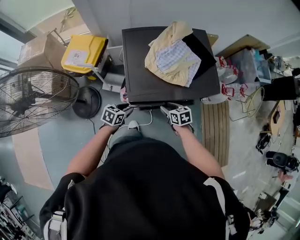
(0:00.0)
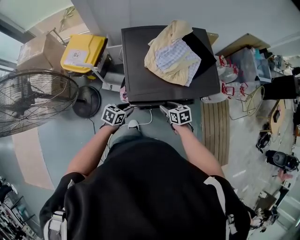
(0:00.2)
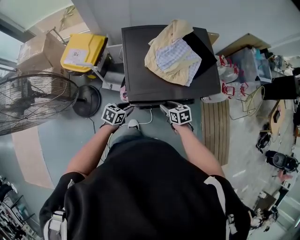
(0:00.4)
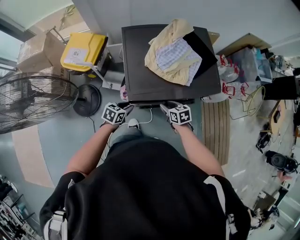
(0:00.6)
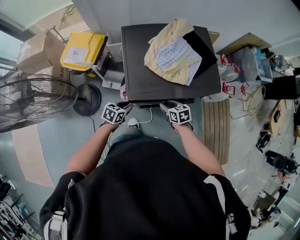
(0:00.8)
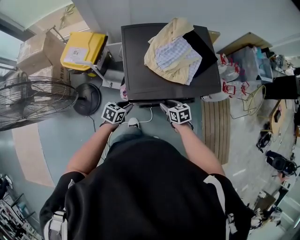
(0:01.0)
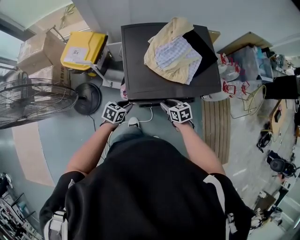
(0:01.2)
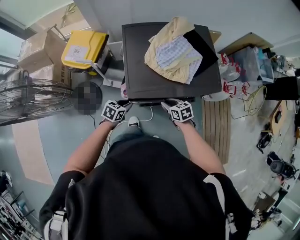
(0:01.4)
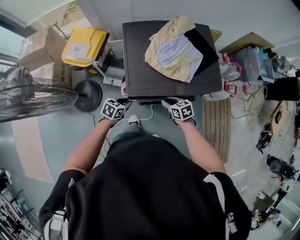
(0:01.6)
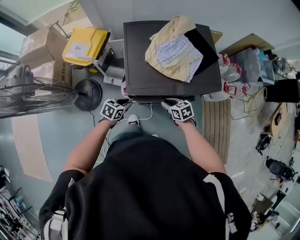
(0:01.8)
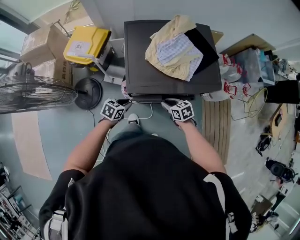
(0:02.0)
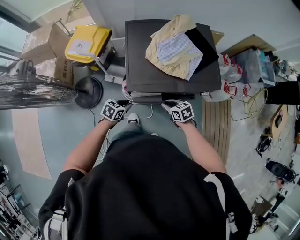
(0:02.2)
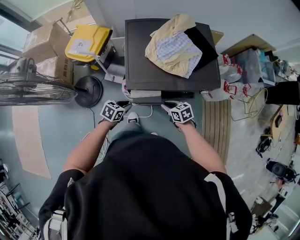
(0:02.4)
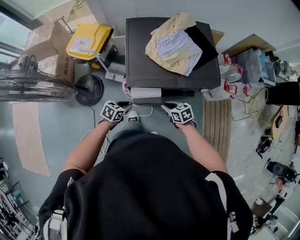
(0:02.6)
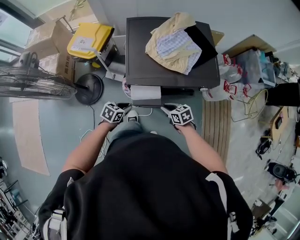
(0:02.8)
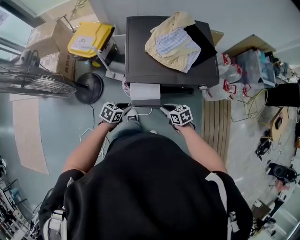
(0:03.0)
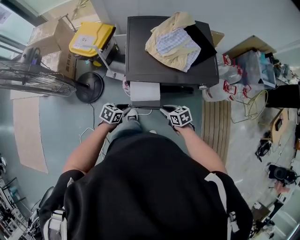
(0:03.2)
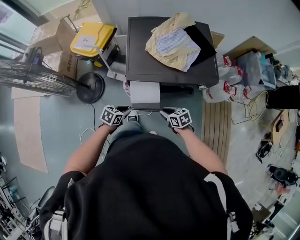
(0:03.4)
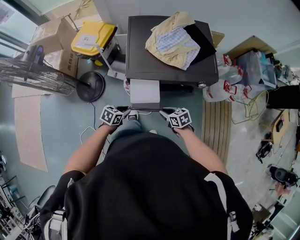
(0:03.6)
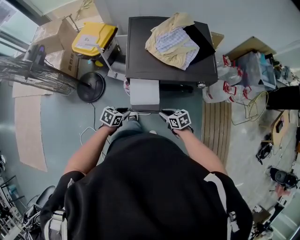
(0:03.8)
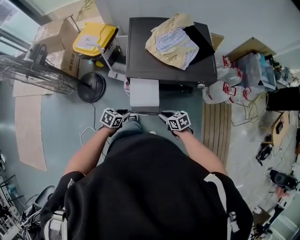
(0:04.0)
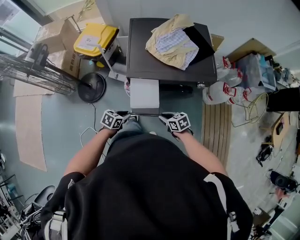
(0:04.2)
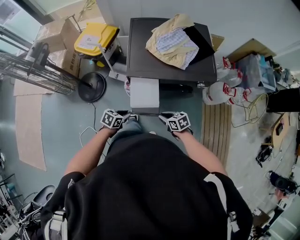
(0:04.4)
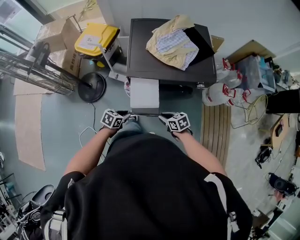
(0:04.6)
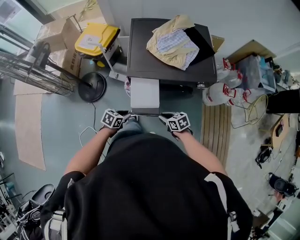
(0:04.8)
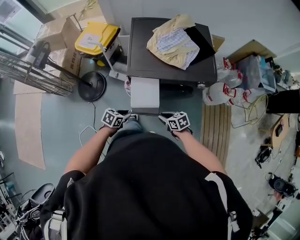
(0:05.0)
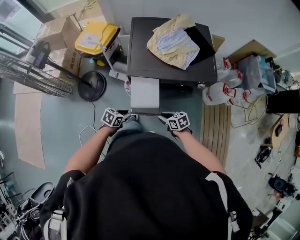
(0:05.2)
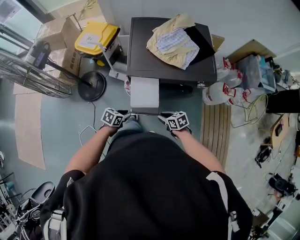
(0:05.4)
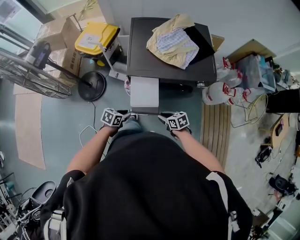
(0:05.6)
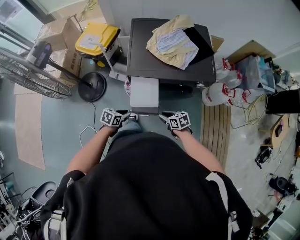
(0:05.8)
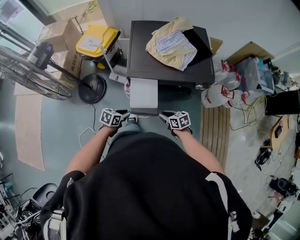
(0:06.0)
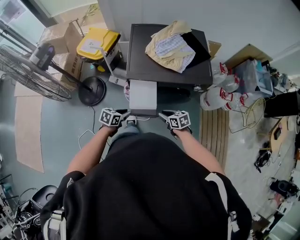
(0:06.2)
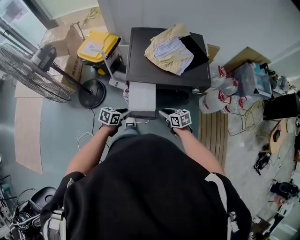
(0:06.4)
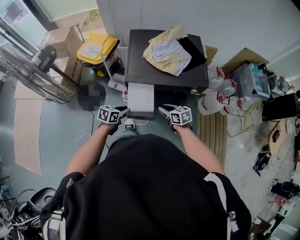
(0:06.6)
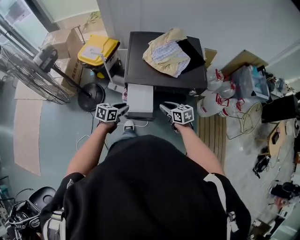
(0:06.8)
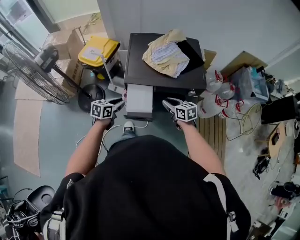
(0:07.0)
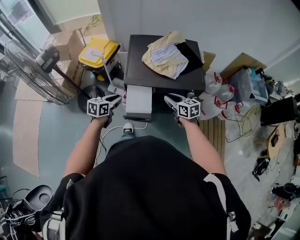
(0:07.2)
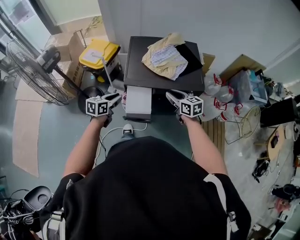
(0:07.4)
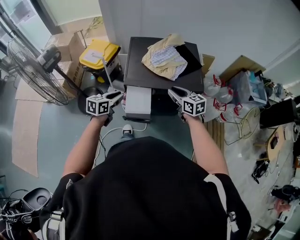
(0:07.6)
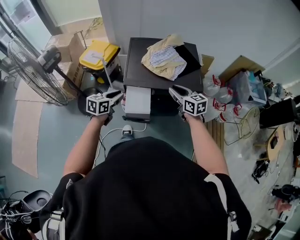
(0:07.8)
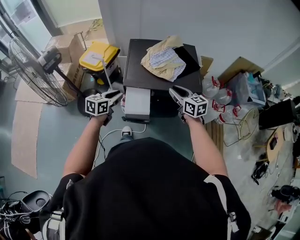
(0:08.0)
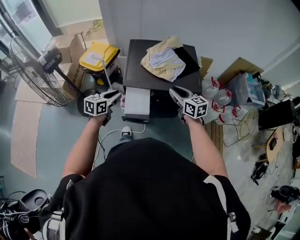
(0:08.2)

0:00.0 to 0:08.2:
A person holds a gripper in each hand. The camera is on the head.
0:00.0 to 0:01.6: The grippers stay close to where they were, moving slightly.
0:01.6 to 0:03.2: The left gripper moves about 10 cm, while the right gripper shifts by about 10 cm.
0:03.2 to 0:05.0: The left gripper moves some 10 cm. Meanwhile the right gripper ends up some 10 cm from where it was.
0:05.0 to 0:06.6: The grippers both shift upward by roughly 10 cm.
0:06.6 to 0:08.2: The two grippers go approximately 20 cm upward. The left gripper swivels about 20 degrees; the right gripper changes its angle by about 20 degrees.

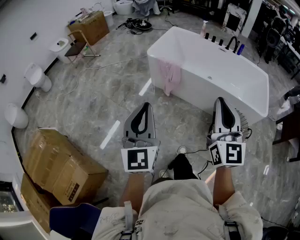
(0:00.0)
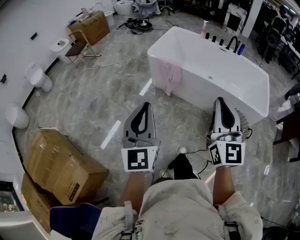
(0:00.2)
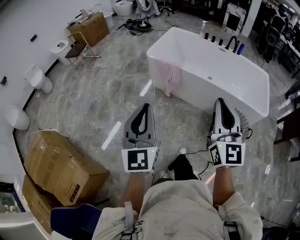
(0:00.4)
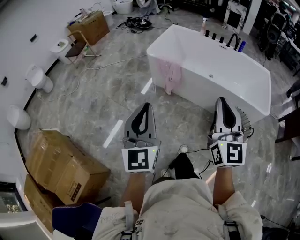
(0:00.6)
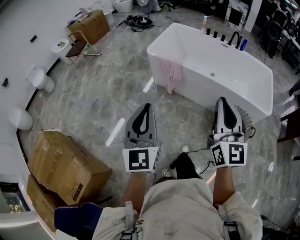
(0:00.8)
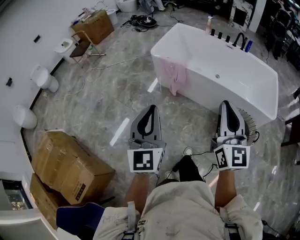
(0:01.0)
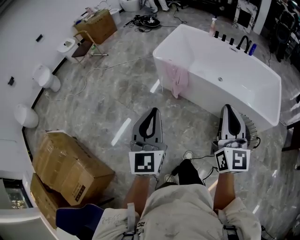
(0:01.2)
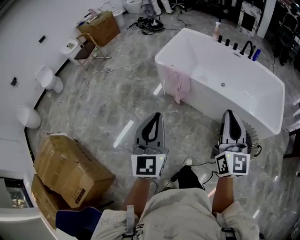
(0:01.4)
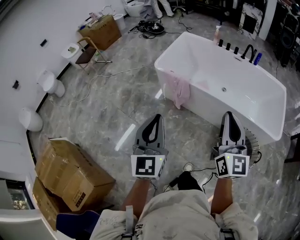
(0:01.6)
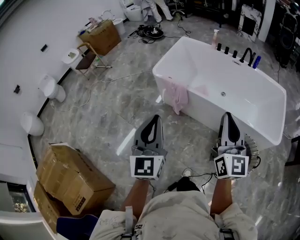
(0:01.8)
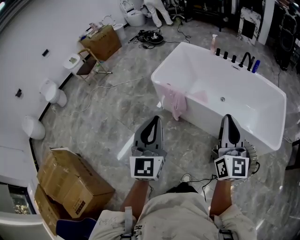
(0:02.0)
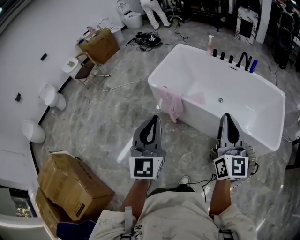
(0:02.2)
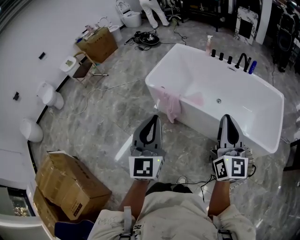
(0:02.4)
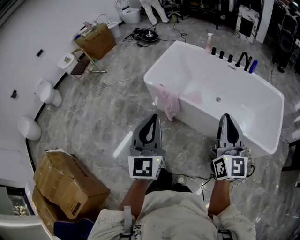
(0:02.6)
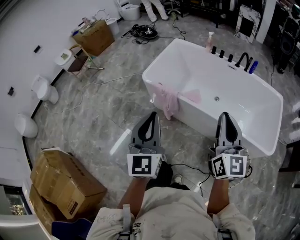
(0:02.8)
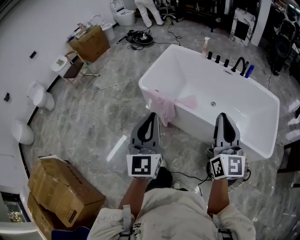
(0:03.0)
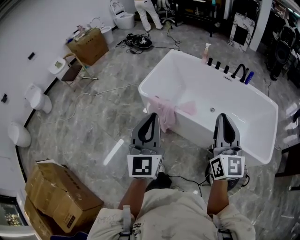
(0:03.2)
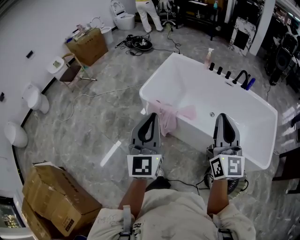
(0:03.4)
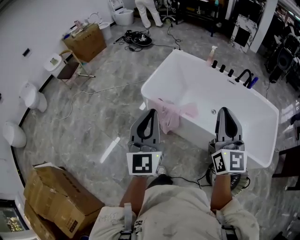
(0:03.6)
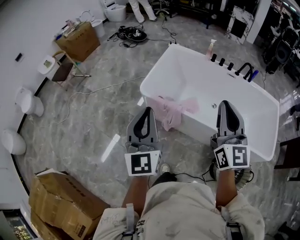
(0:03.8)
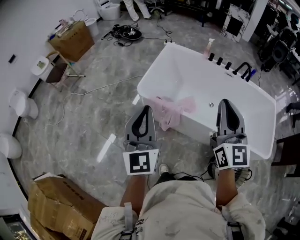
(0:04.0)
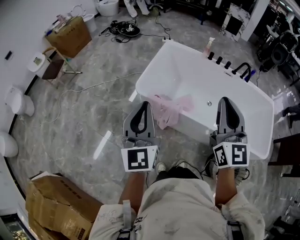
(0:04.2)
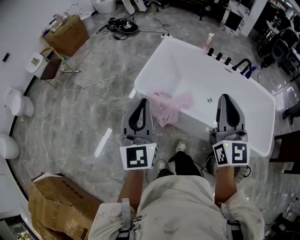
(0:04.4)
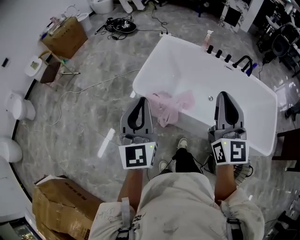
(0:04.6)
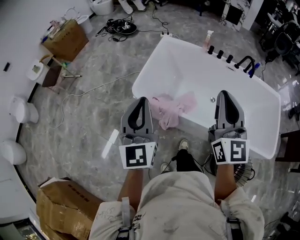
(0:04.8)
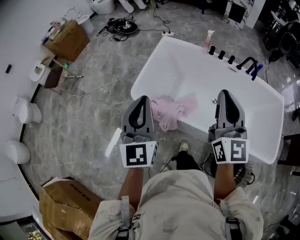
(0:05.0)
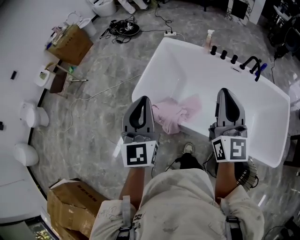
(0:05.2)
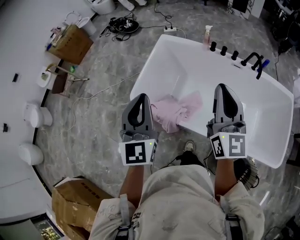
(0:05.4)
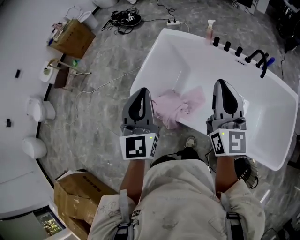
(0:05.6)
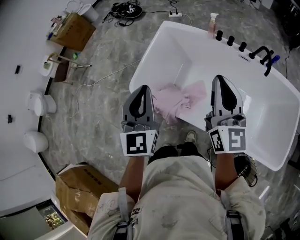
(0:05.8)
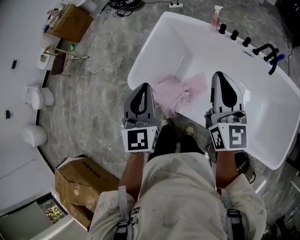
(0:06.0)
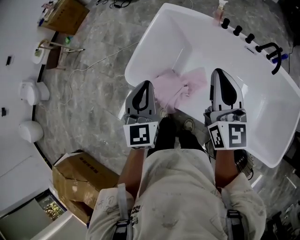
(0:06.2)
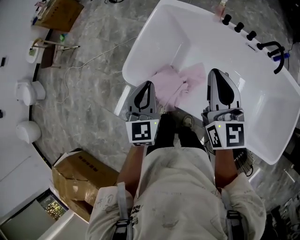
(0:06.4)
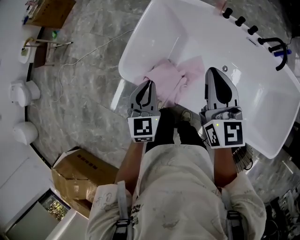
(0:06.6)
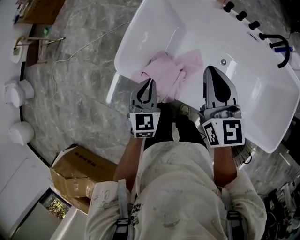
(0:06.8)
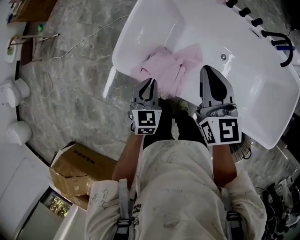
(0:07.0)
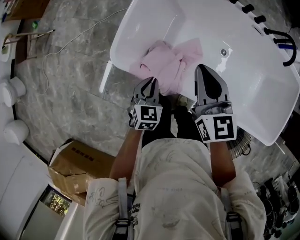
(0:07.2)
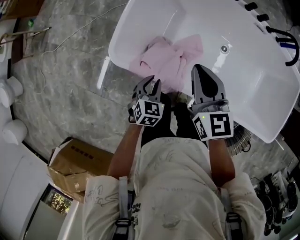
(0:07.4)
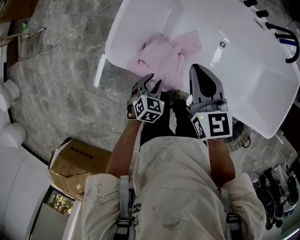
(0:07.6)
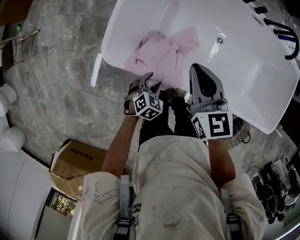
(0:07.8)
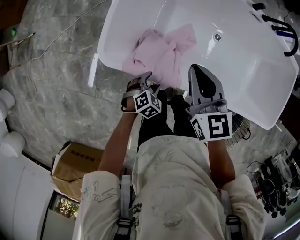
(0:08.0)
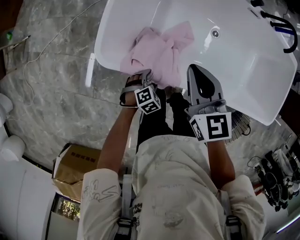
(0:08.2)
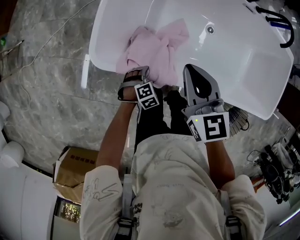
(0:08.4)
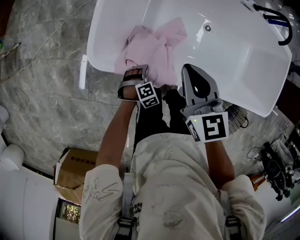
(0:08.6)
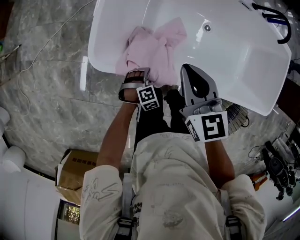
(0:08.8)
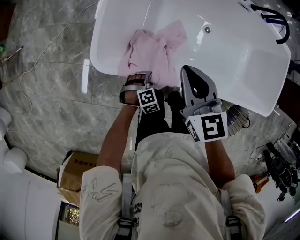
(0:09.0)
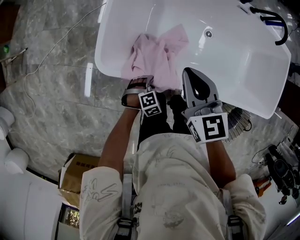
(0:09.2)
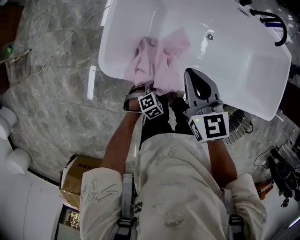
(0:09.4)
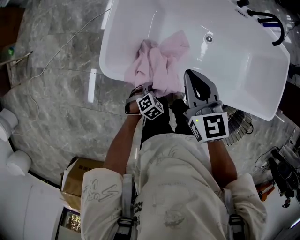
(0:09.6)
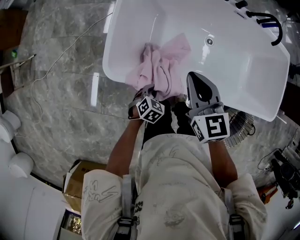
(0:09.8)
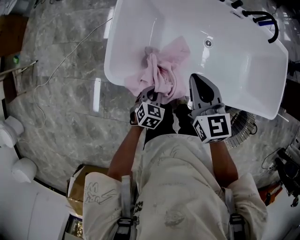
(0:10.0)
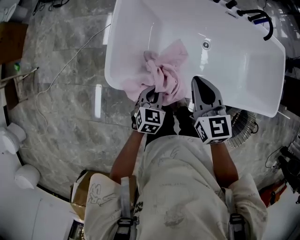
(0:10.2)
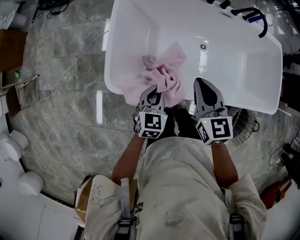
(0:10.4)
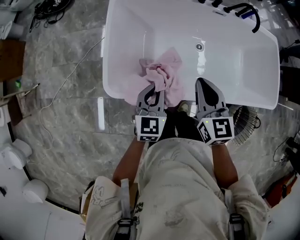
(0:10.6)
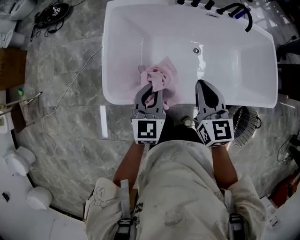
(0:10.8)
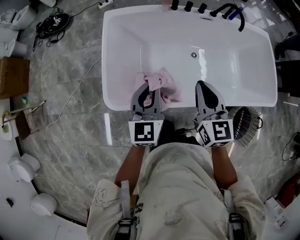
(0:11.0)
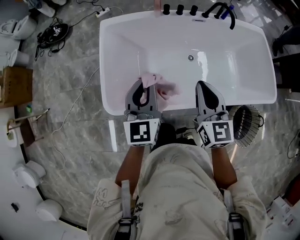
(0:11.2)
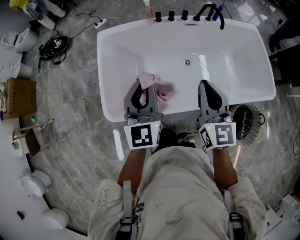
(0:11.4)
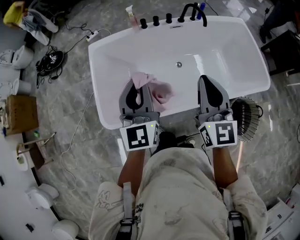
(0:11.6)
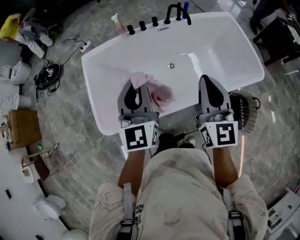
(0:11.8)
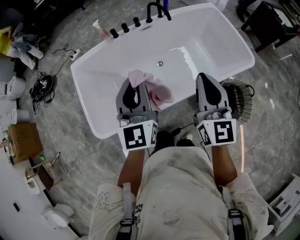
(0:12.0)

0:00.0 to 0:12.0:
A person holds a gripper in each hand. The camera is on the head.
0:00.0 to 0:01.6: Both grippers travel together forward and to the right, approximately 20 cm.
0:01.6 to 0:03.0: Both grippers travel together forward and to the right, about 20 cm.
0:03.0 to 0:04.4: The grippers both shift forward and to the left by roughly 25 cm.
0:04.4 to 0:06.0: The grippers both shift forward and to the right by approximately 35 cm.
0:06.0 to 0:07.6: The left gripper travels downward by approximately 40 cm, angles its fingers downward, by about 50 degrees, and opens up. Meanwhile the right gripper shifts about 30 cm downward and to the left, and turns by approximately 30 degrees.
0:07.6 to 0:09.0: The left gripper heads downward, covering approximately 10 cm, and twists some 40 degrees clockwise, seen from behind.
0:09.0 to 0:10.4: The right gripper travels upward and to the right by some 10 cm, while the left gripper is displaced upward by approximately 25 cm, angles its fingers upward, by some 40 degrees, and closes.
0:10.4 to 0:12.0: The left gripper is displaced upward and to the right by about 40 cm, and angles its fingers upward, by roughly 40 degrees; the right gripper goes some 35 cm to the right and upward, and turns by about 40 degrees.

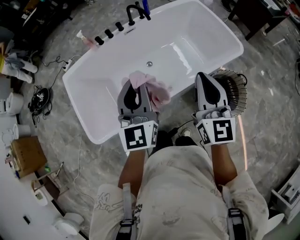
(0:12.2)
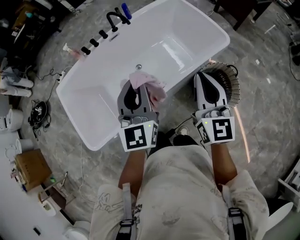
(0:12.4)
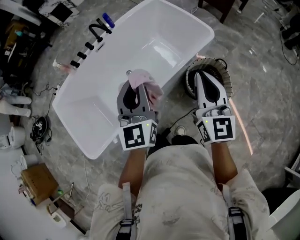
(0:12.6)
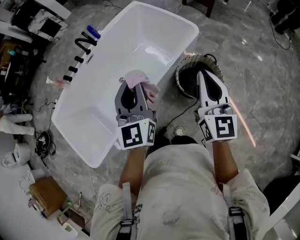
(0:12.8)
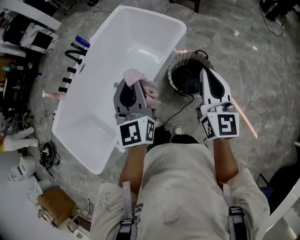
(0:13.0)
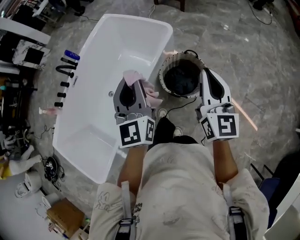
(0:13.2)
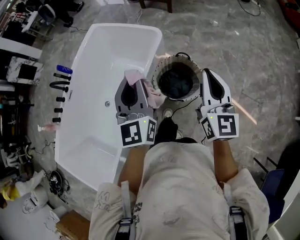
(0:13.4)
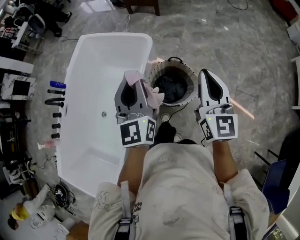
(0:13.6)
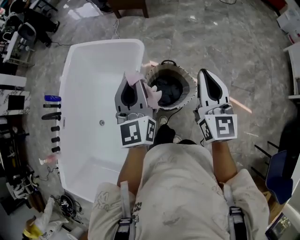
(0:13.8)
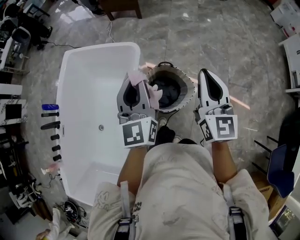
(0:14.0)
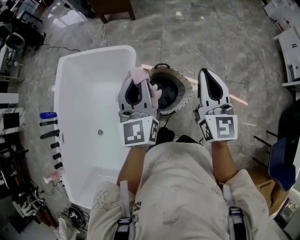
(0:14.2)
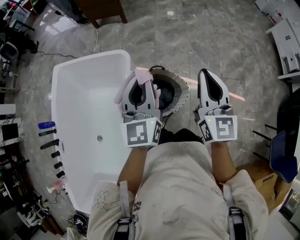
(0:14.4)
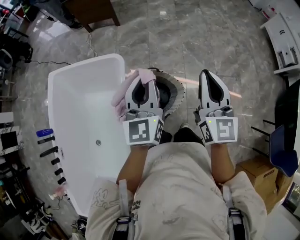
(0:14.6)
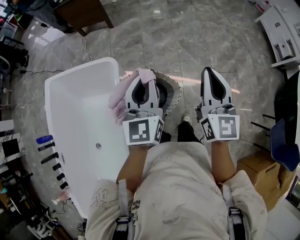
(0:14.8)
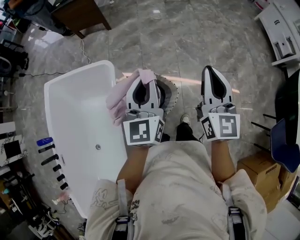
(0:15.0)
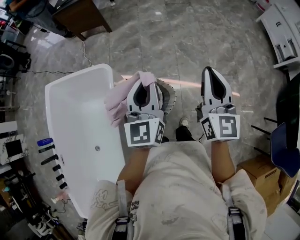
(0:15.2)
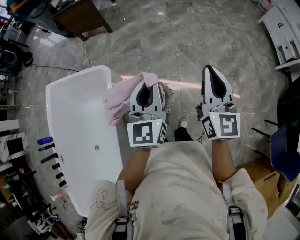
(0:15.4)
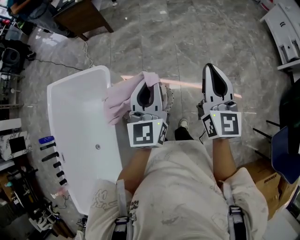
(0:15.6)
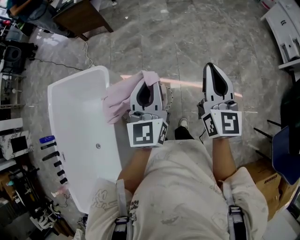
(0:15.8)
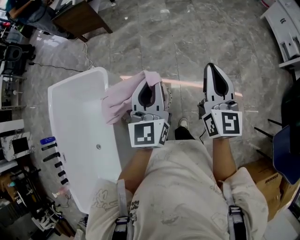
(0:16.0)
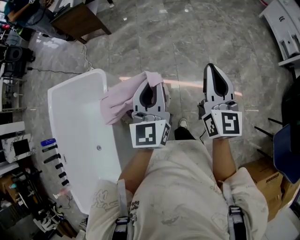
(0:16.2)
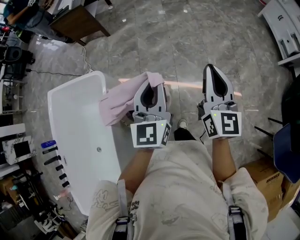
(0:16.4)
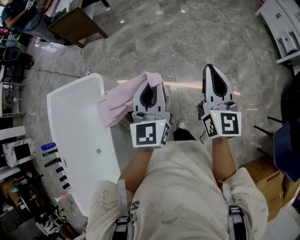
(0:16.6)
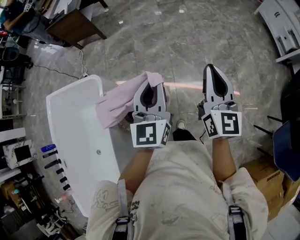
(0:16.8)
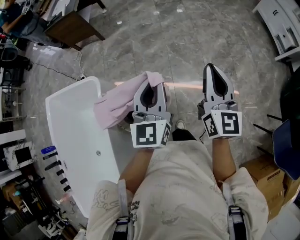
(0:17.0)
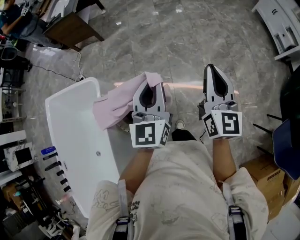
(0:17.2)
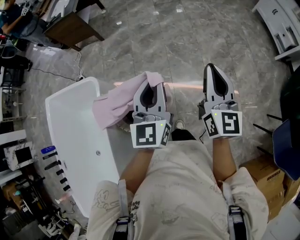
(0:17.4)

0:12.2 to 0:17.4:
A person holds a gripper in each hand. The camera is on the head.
0:12.2 to 0:14.0: Both grippers are carried some 50 cm. The left gripper turns by roughly 50 degrees; the right gripper swivels some 50 degrees.
0:14.0 to 0:15.6: The two grippers go approximately 20 cm to the right.
0:15.6 to 0:17.4: The grippers both shift to the right by about 15 cm.
